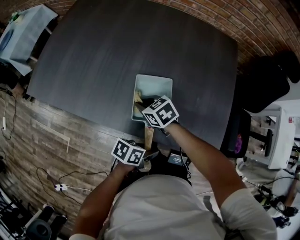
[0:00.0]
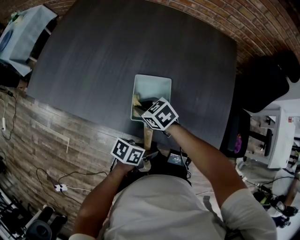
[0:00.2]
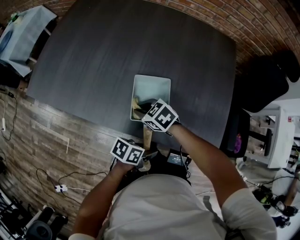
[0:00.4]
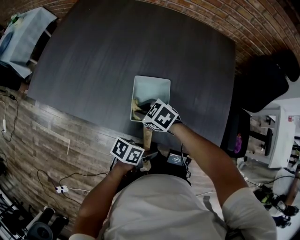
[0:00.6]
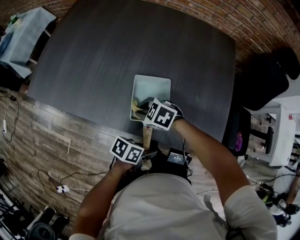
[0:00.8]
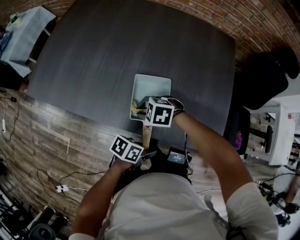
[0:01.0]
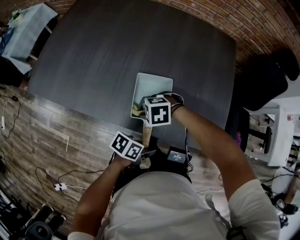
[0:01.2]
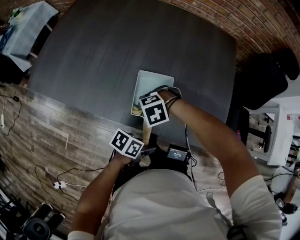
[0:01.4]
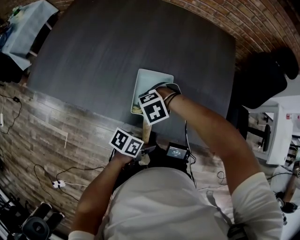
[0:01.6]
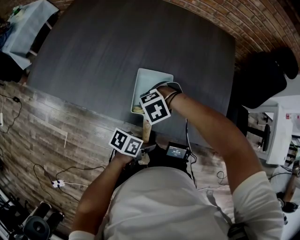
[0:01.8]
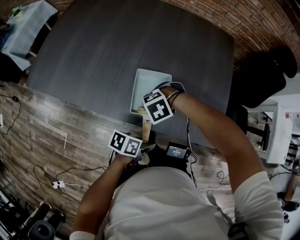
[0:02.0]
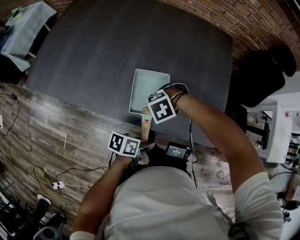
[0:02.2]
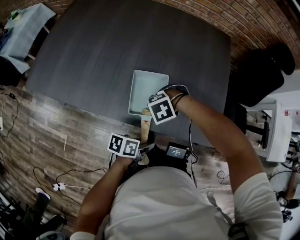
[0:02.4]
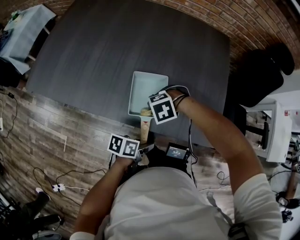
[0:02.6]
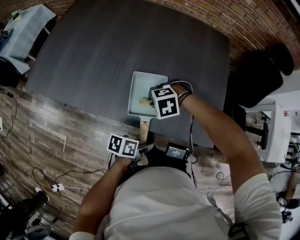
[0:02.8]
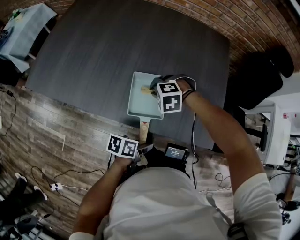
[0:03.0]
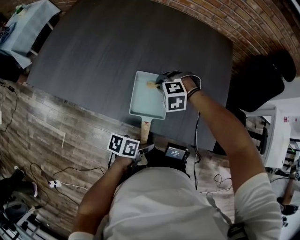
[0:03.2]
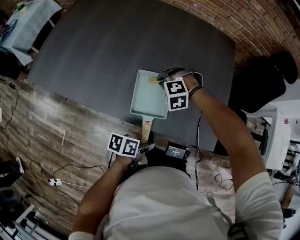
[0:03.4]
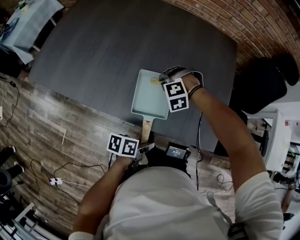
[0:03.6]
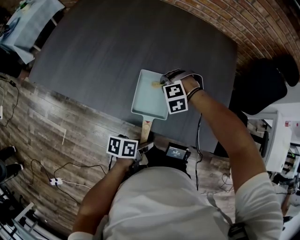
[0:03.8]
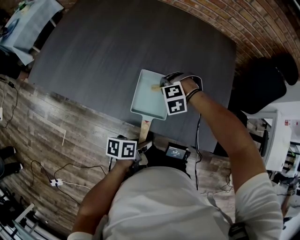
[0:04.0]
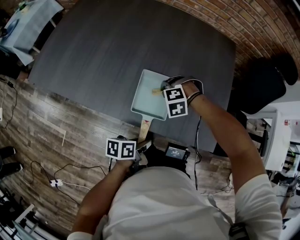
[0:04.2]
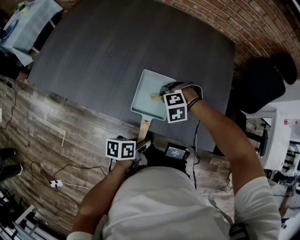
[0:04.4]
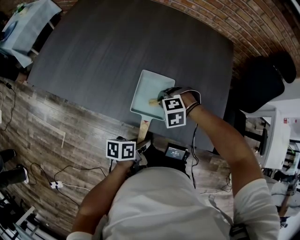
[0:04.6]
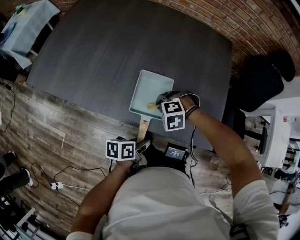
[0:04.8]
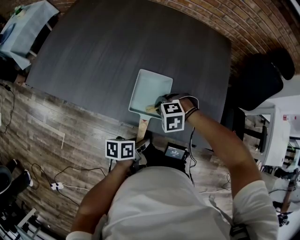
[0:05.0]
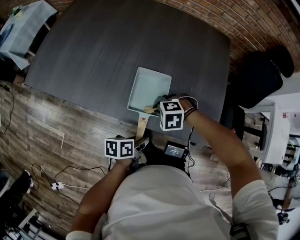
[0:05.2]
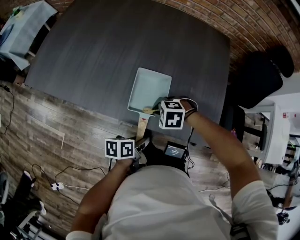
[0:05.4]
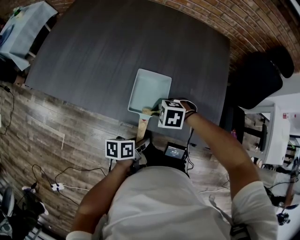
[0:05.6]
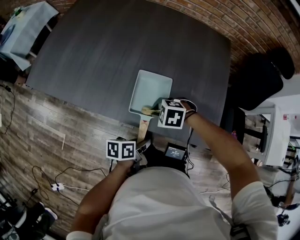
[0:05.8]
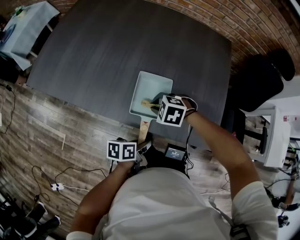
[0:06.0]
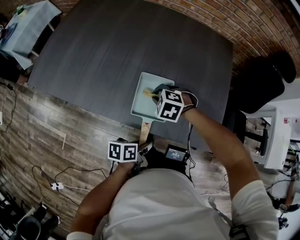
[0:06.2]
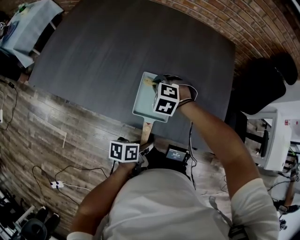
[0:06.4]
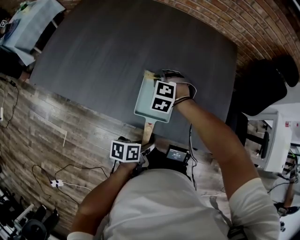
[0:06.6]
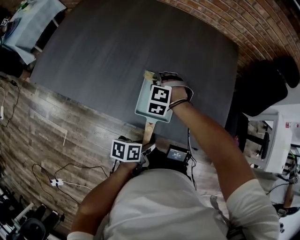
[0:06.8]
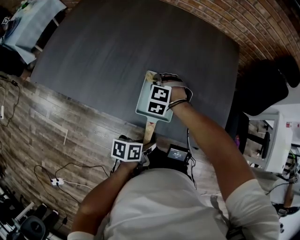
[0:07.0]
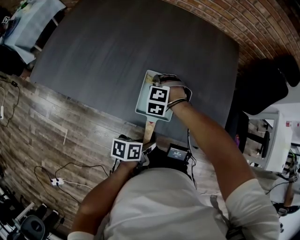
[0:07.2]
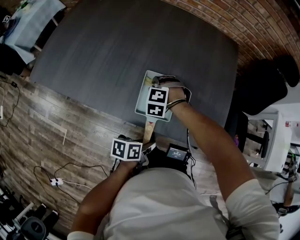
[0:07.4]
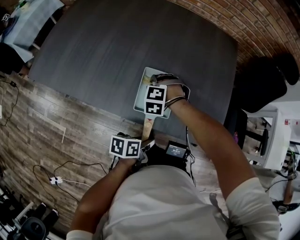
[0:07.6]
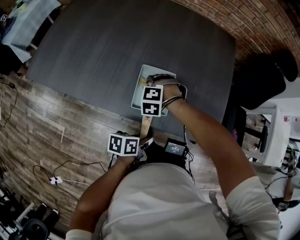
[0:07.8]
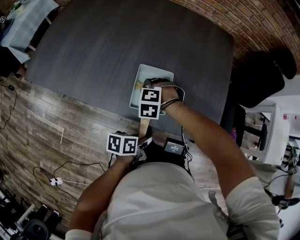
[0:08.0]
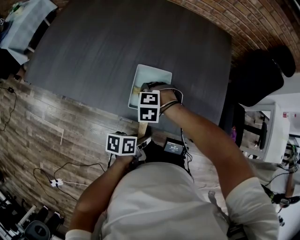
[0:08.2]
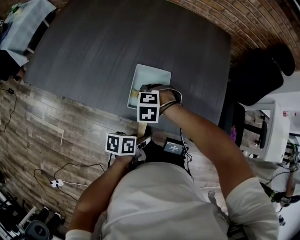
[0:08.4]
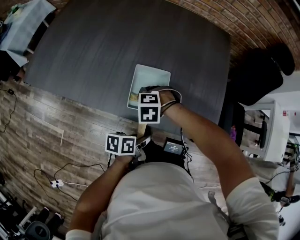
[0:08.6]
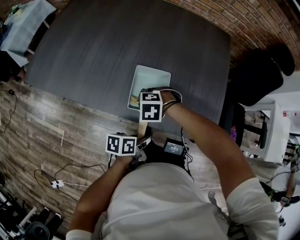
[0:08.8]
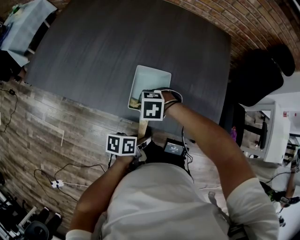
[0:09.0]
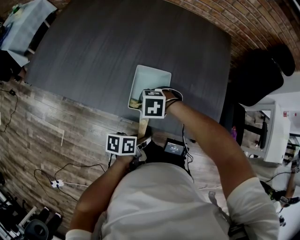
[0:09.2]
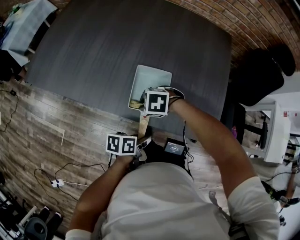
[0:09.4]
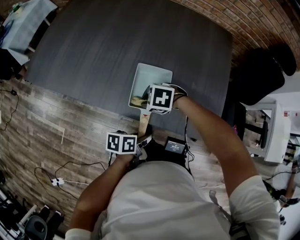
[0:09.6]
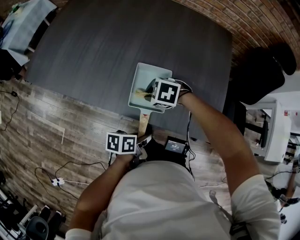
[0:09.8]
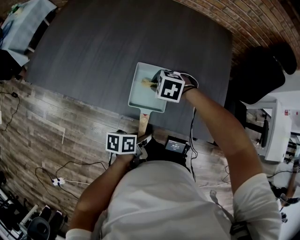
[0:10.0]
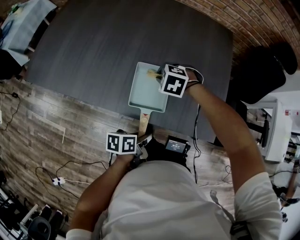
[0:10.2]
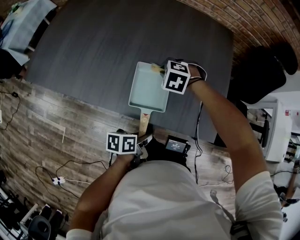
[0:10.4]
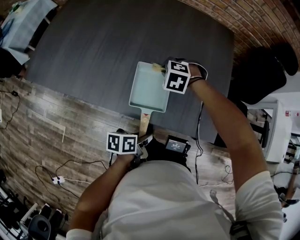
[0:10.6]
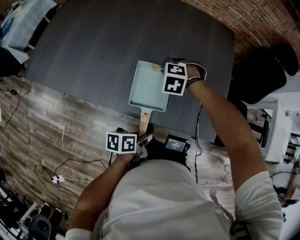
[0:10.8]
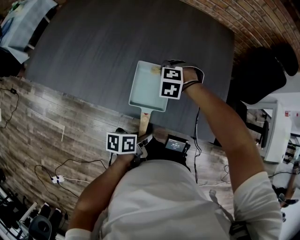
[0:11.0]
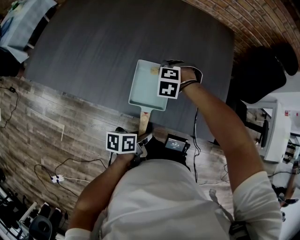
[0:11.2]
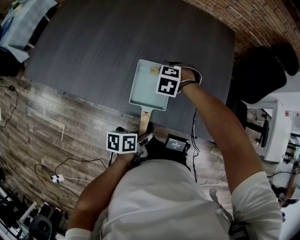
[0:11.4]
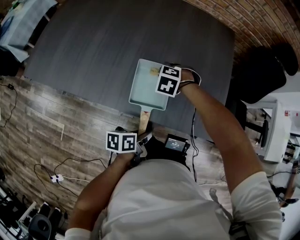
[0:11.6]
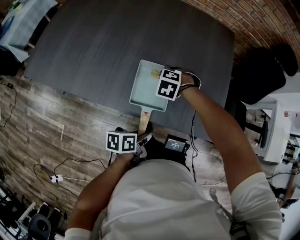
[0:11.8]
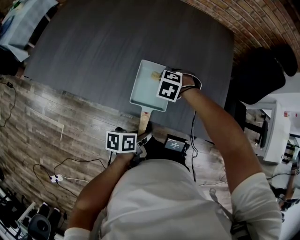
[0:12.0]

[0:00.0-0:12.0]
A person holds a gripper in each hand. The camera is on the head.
0.0 to 1.6 s: The right gripper ends up approximately 10 cm from where it was, and rotates around the line of its fingers by approximately 70 degrees, counterclockwise from behind.
1.6 to 3.0 s: The right gripper changes place by about 10 cm, and changes its angle by roughly 20 degrees.
4.4 to 6.0 s: The right gripper moves roughly 5 cm, and changes its angle by approximately 30 degrees.
6.0 to 7.6 s: The right gripper changes place by some 10 cm, and turns by about 30 degrees.
7.6 to 9.0 s: The right gripper changes place by some 10 cm, and turns by about 30 degrees.
9.0 to 10.4 s: The right gripper changes place by some 15 cm, and turns by approximately 20 degrees.
10.4 to 12.0 s: The right gripper shifts by roughly 5 cm.

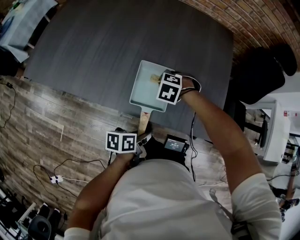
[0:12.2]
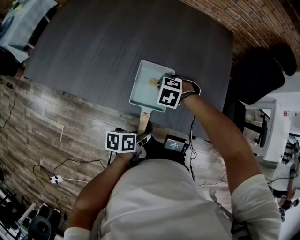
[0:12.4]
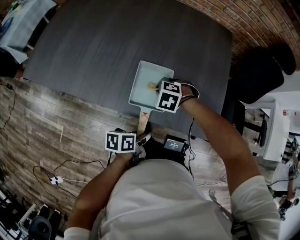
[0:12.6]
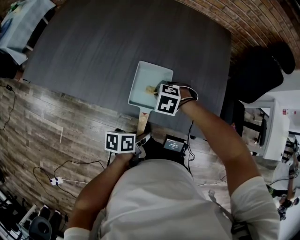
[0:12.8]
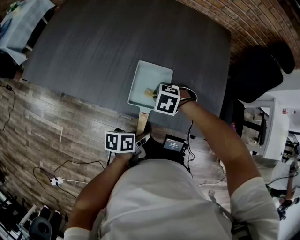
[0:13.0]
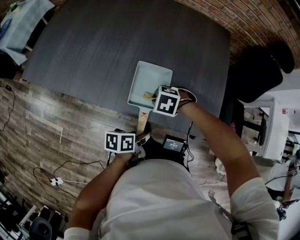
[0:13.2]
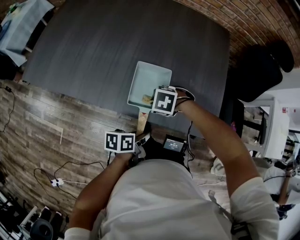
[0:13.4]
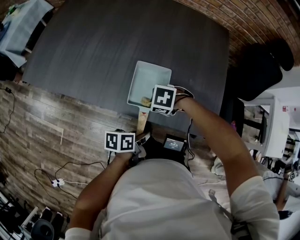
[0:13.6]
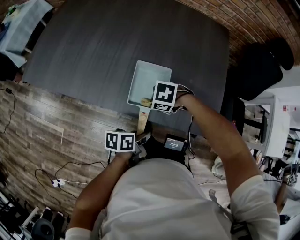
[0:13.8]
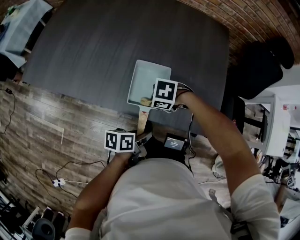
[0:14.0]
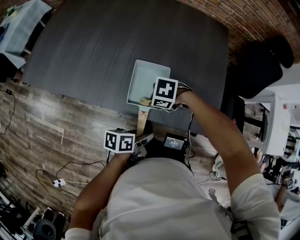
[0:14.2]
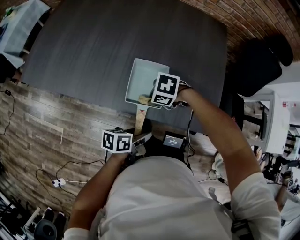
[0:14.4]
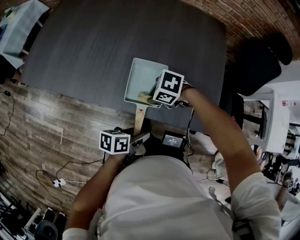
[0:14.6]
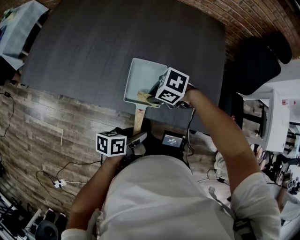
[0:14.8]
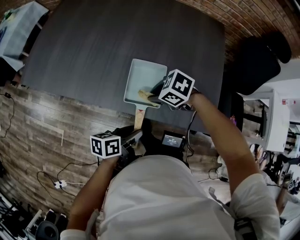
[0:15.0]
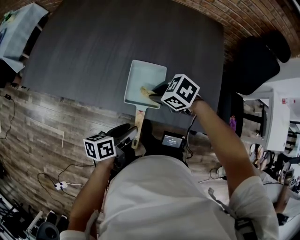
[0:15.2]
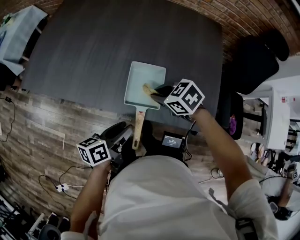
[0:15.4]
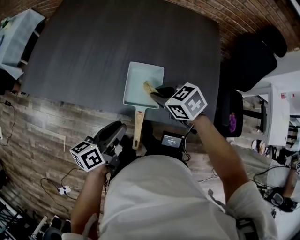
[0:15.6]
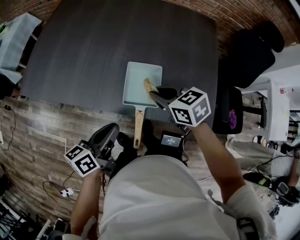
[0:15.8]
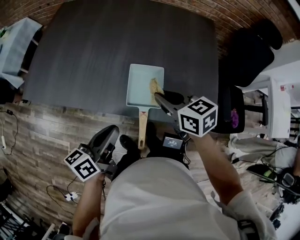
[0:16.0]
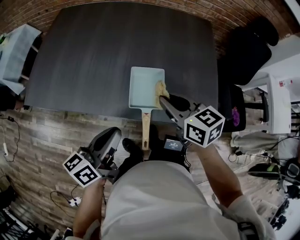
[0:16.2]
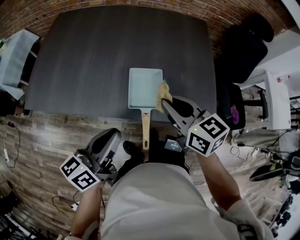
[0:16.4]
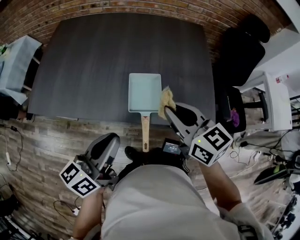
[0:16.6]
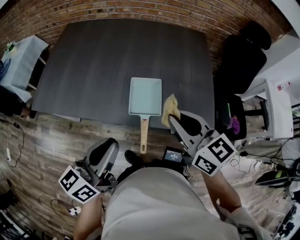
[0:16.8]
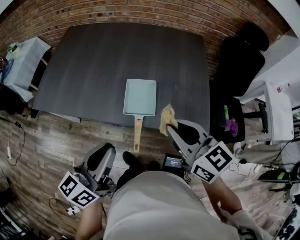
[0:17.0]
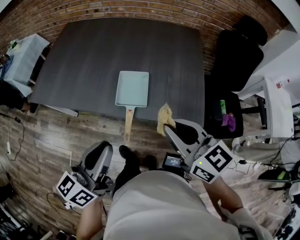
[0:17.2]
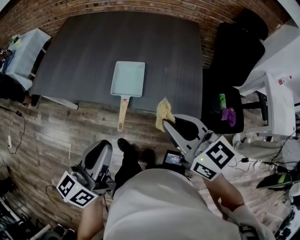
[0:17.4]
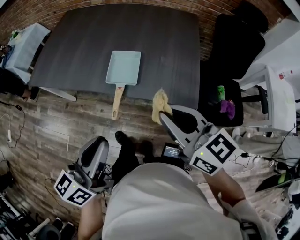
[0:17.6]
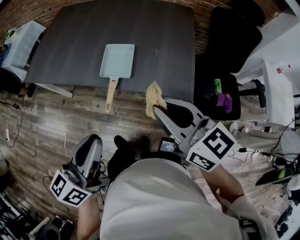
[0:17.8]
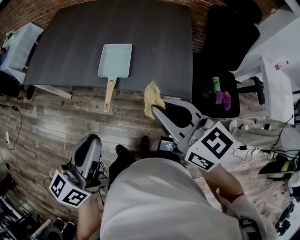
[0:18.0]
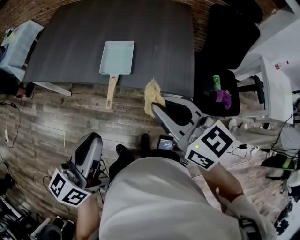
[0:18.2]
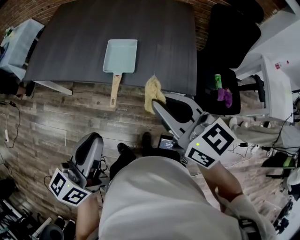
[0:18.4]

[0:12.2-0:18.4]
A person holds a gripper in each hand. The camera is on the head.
12.2 to 13.8 s: The right gripper changes place by some 10 cm, and swivels about 30 degrees.
13.8 to 15.4 s: The right gripper moves upward, roughly 10 cm, and swivels some 40 degrees; the left gripper changes place by roughly 10 cm, rotates about 20 degrees, and opens.
15.4 to 16.8 s: The right gripper heads upward and backward, covering about 25 cm, and angles its fingers upward, by about 40 degrees. Meanwhile the left gripper moves upward, roughly 20 cm, swivels roughly 30 degrees, and closes.
16.8 to 18.4 s: The two grippers go roughly 15 cm backward.

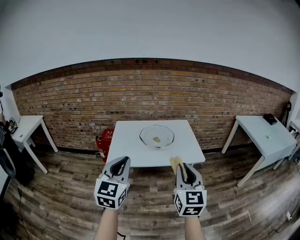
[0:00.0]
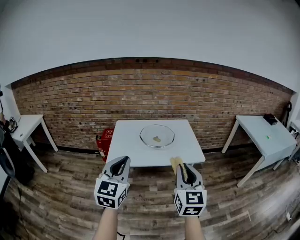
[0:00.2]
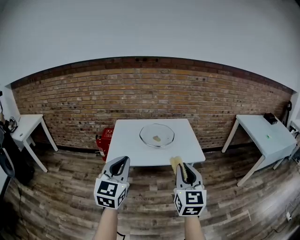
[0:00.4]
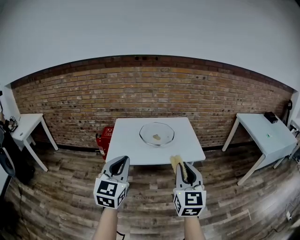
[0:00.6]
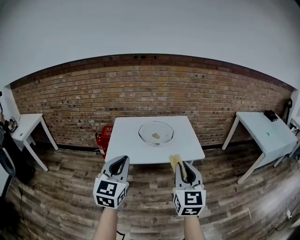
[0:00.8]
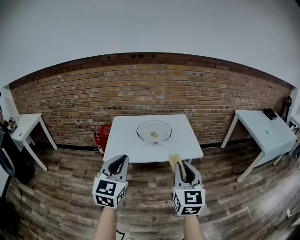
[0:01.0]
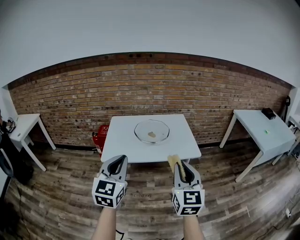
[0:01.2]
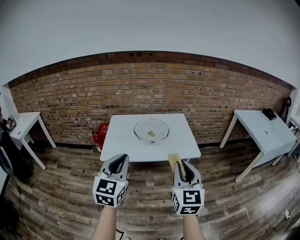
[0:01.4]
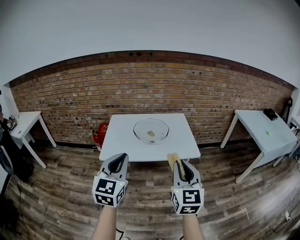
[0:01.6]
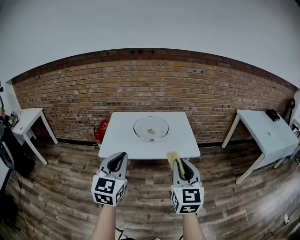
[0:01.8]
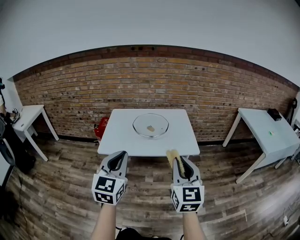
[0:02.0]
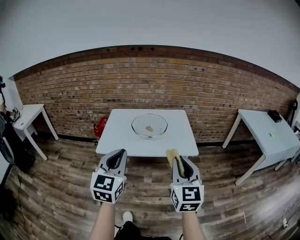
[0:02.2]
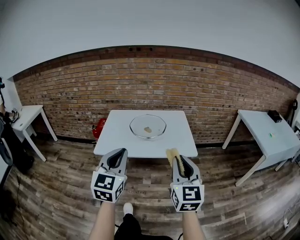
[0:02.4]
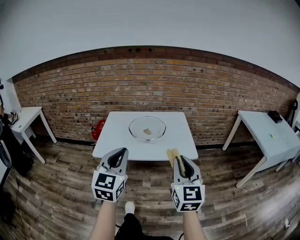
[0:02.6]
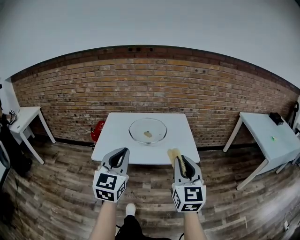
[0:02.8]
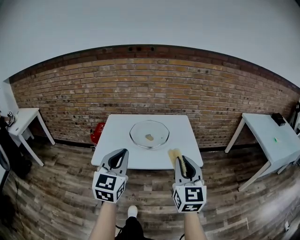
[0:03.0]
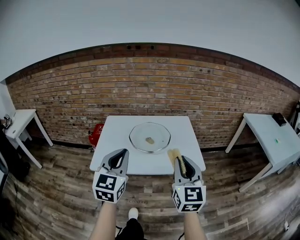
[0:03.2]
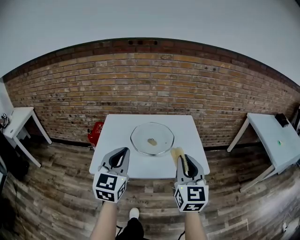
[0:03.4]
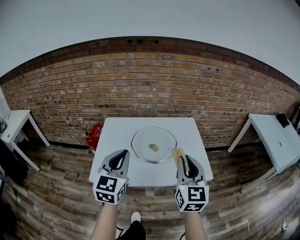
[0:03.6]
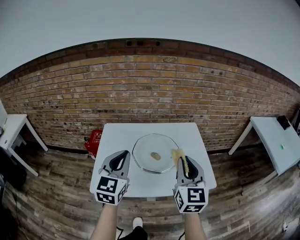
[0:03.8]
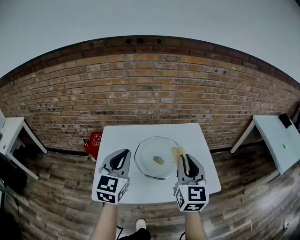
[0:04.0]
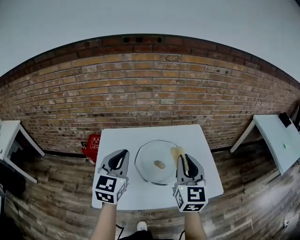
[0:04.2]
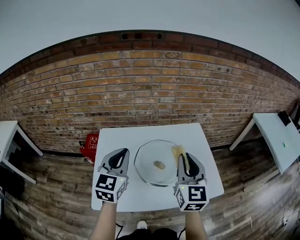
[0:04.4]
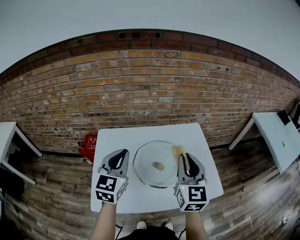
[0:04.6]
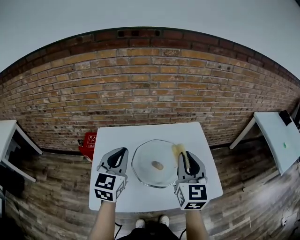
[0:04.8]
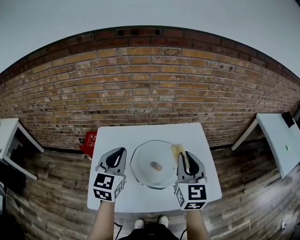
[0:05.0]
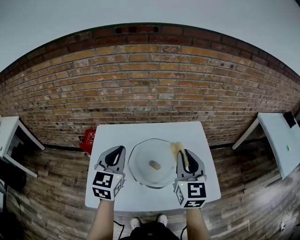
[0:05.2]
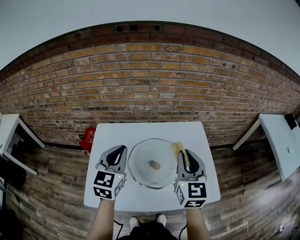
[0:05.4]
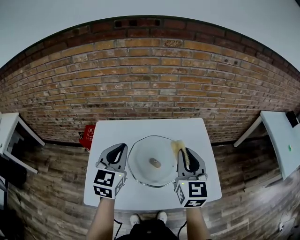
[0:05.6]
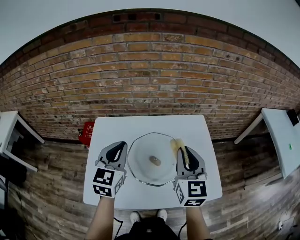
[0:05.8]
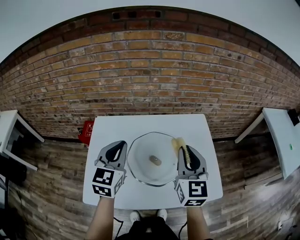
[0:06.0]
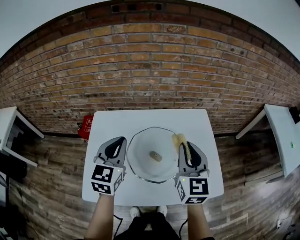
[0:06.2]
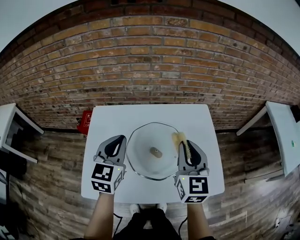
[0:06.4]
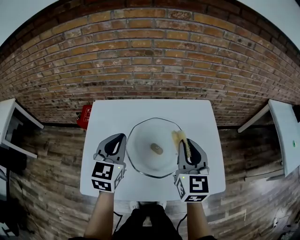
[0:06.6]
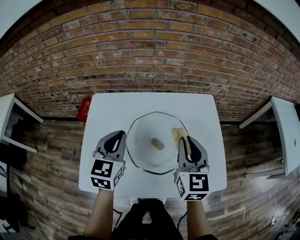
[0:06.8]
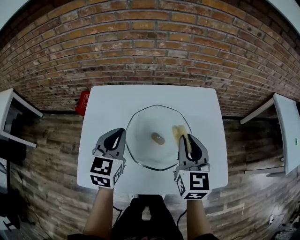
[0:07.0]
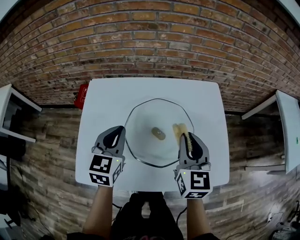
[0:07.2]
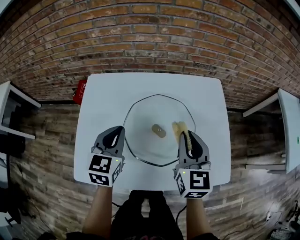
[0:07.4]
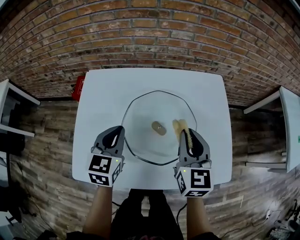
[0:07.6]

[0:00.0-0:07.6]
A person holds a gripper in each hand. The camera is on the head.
0.0 to 1.6 s: The left gripper goes about 5 cm to the right.
1.6 to 3.0 s: The two grippers go about 10 cm forward.
3.0 to 4.6 s: The grippers both shift forward by about 35 cm.
4.6 to 6.0 s: The left gripper shifts by some 5 cm; the right gripper shifts approximately 5 cm forward.
6.0 to 7.6 s: Both grippers move downward, approximately 15 cm.
